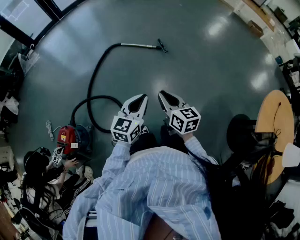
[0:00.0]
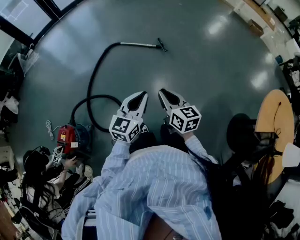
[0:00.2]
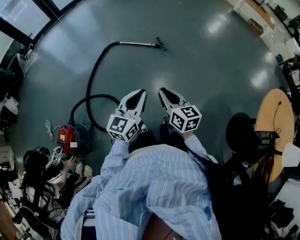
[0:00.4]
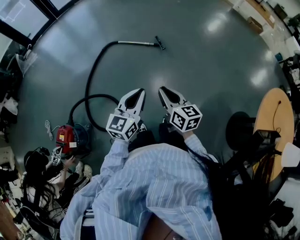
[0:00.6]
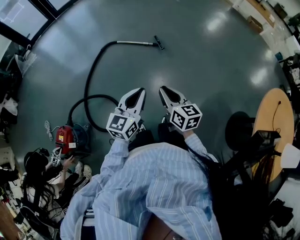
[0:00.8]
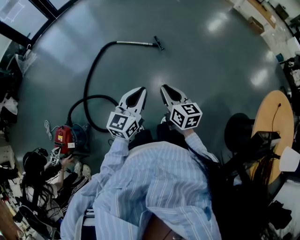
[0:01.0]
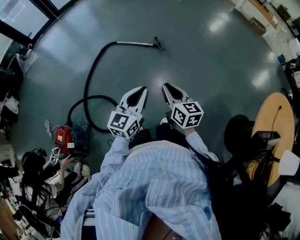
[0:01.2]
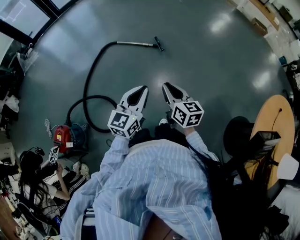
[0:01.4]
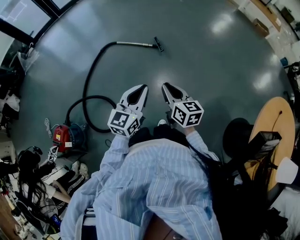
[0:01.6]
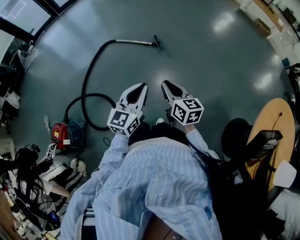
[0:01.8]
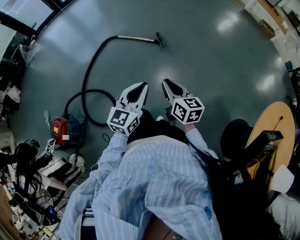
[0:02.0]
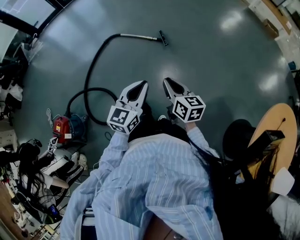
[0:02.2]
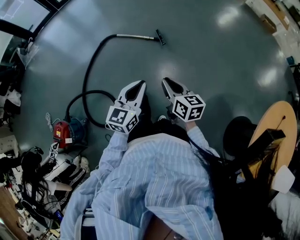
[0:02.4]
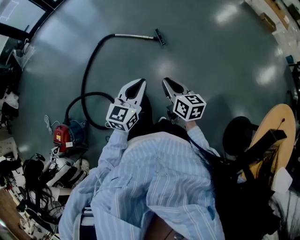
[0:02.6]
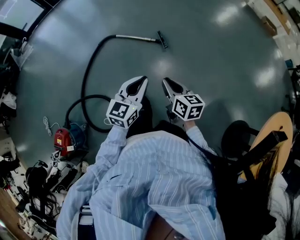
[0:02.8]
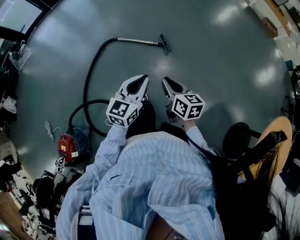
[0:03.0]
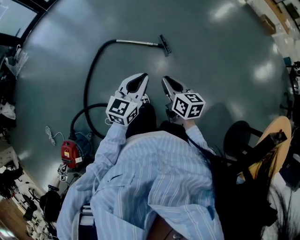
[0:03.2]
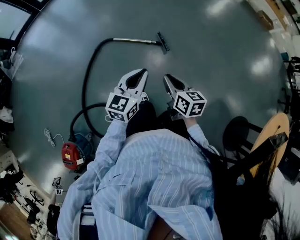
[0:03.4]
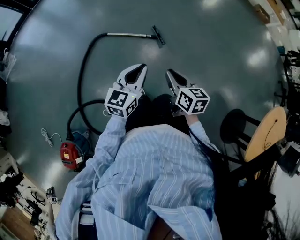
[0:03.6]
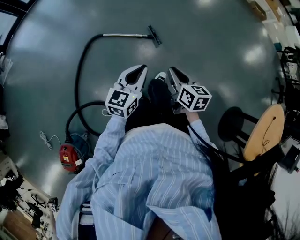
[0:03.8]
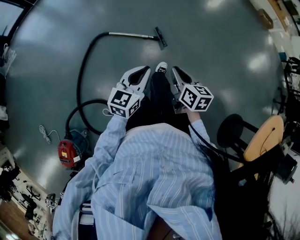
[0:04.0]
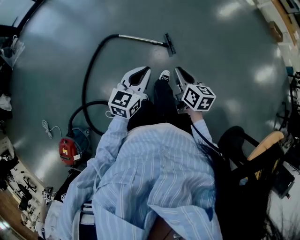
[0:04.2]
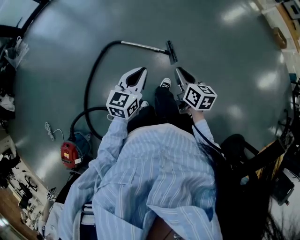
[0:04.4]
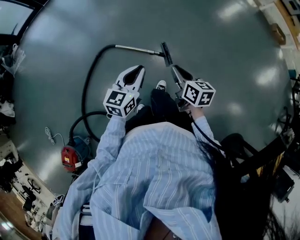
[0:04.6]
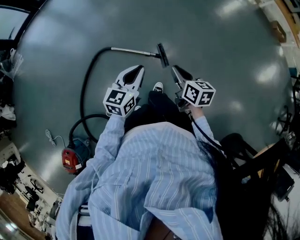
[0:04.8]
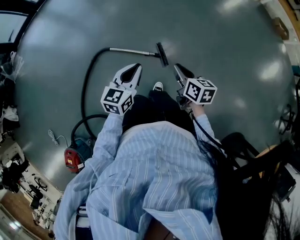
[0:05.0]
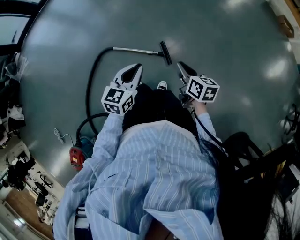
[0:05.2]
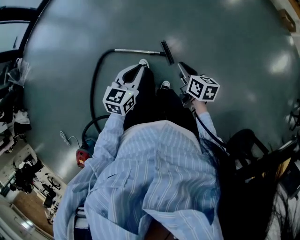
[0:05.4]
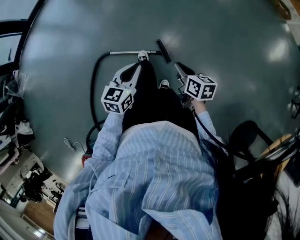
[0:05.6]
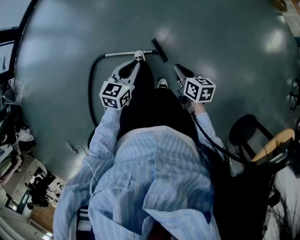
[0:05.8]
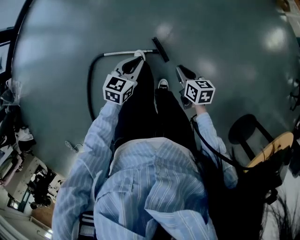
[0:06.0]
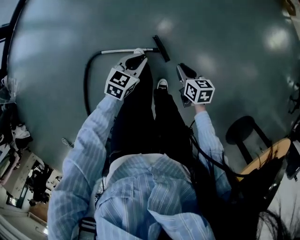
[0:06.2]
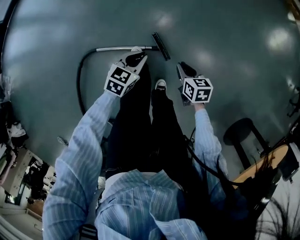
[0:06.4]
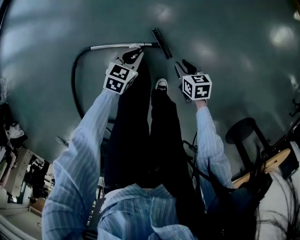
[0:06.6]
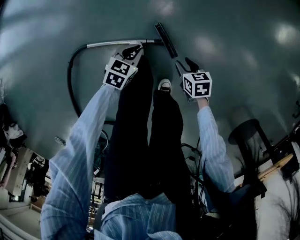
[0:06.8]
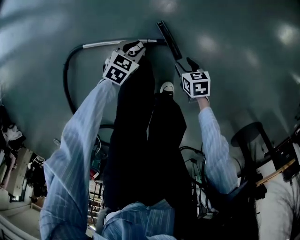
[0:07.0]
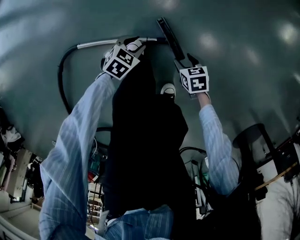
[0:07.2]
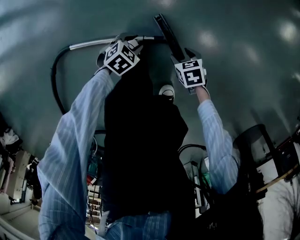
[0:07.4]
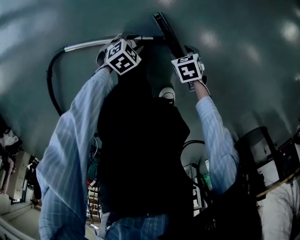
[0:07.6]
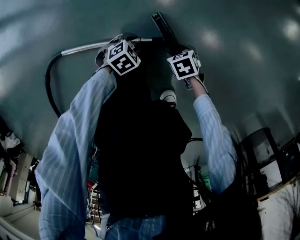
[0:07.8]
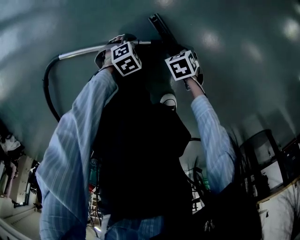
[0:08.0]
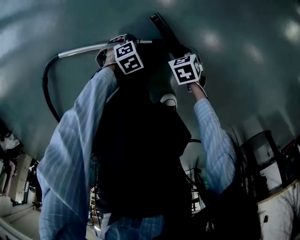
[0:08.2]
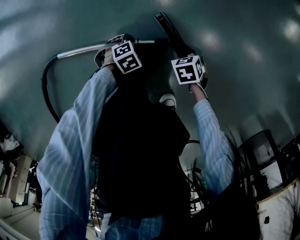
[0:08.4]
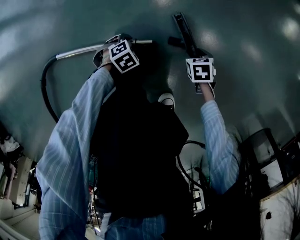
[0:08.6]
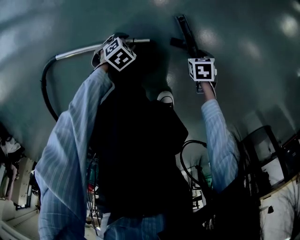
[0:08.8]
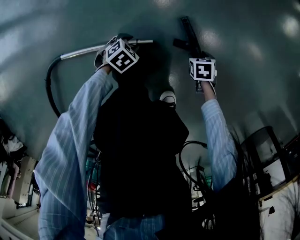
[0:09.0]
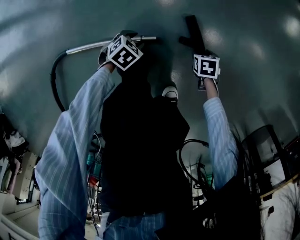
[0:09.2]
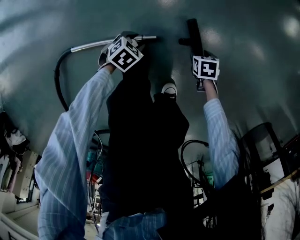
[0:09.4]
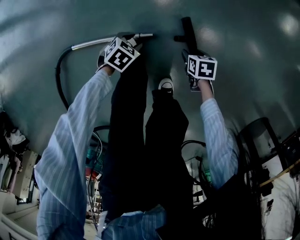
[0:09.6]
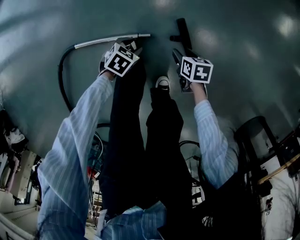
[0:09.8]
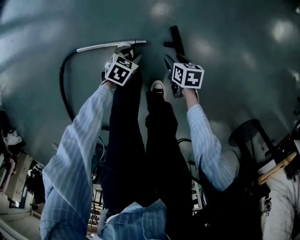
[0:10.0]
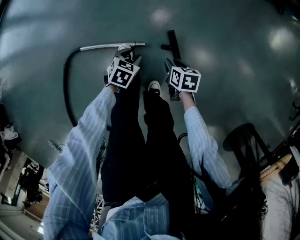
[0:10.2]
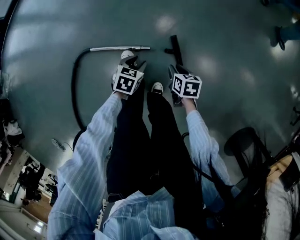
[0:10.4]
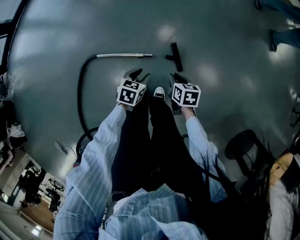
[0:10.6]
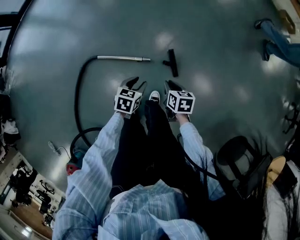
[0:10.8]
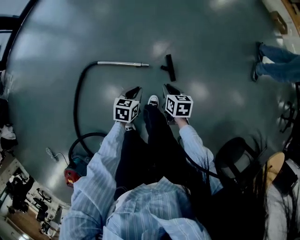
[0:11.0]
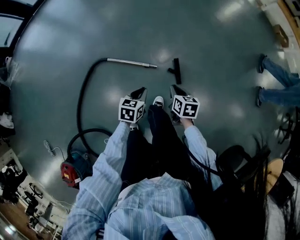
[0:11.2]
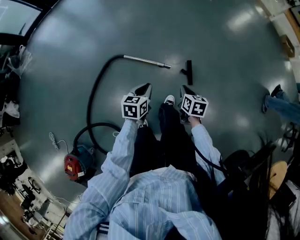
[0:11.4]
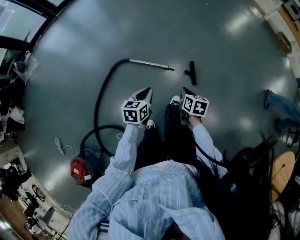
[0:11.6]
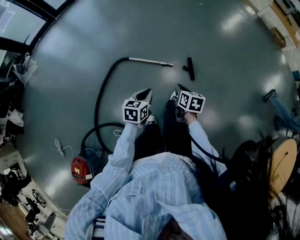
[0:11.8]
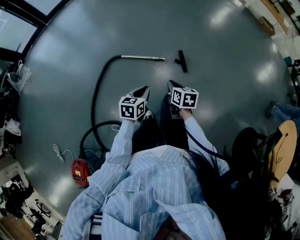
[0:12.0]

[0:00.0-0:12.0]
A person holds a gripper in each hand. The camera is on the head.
0:00.0 to 0:01.6: Both grippers move to the right and forward, roughly 15 cm.
0:01.6 to 0:03.0: Both grippers travel together forward, about 25 cm.
0:03.0 to 0:04.4: Both grippers travel together forward, some 25 cm.
0:04.4 to 0:06.0: Both grippers move forward, downward and to the right, some 35 cm. The left gripper turns by roughly 30 degrees.
0:06.0 to 0:07.6: Both grippers move downward, roughly 60 cm. The right gripper tips its fingers downward by about 30 degrees, and opens up; the left gripper rotates roughly 50 degrees, and opens up.
0:07.6 to 0:09.0: The left gripper moves downward, some 5 cm. The right gripper ends up roughly 10 cm from where it was, and rotates about 20 degrees.
0:09.0 to 0:10.4: Both grippers move upward, approximately 40 cm. The right gripper turns by roughly 30 degrees, and closes its fingers, while the left gripper turns by some 40 degrees.
0:10.4 to 0:12.0: The right gripper is displaced backward, upward and to the left by approximately 50 cm, and closes up; the left gripper goes approximately 50 cm backward and upward, rotates about 30 degrees, and closes up.

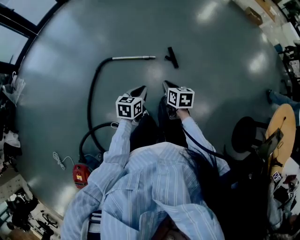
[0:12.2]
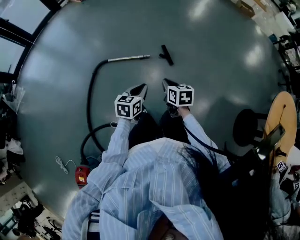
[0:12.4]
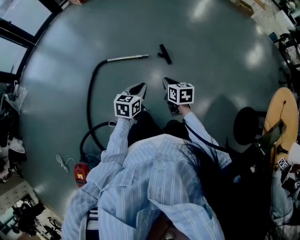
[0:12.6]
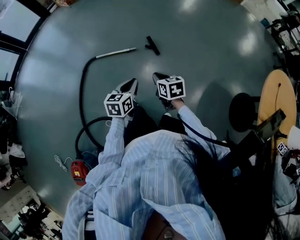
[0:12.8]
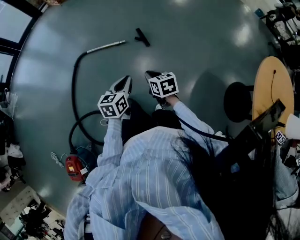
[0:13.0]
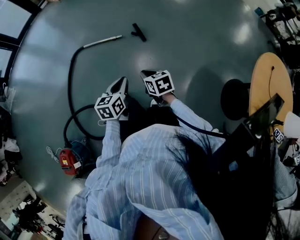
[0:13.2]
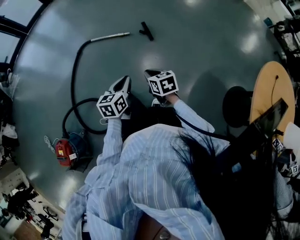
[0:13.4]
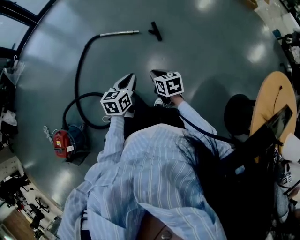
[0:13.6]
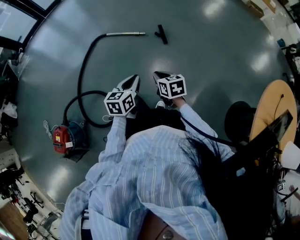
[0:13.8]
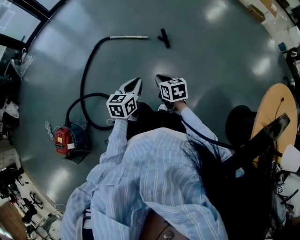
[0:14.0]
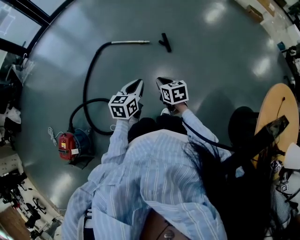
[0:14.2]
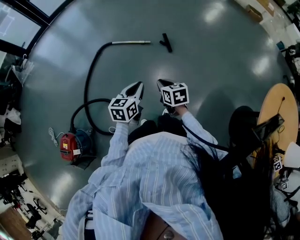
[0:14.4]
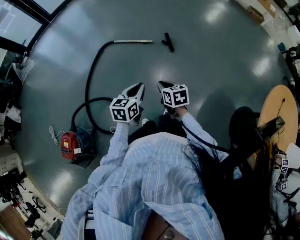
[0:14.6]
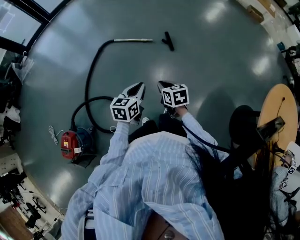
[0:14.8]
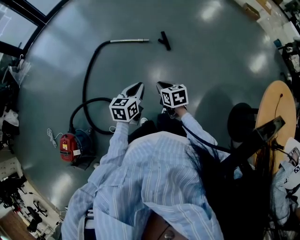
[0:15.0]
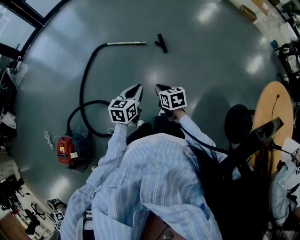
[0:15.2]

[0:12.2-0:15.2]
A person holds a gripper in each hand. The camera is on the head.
0:12.2 to 0:13.8: The grippers both shift backward and to the right by roughly 35 cm.
0:13.8 to 0:15.2: The grippers both shift to the left by approximately 5 cm.

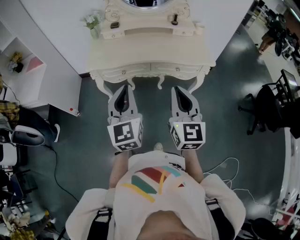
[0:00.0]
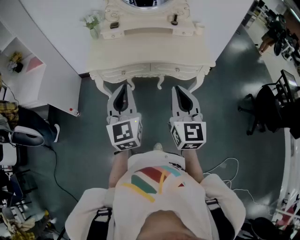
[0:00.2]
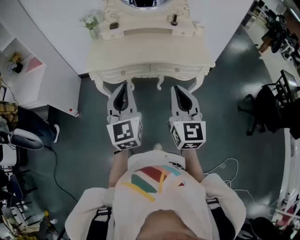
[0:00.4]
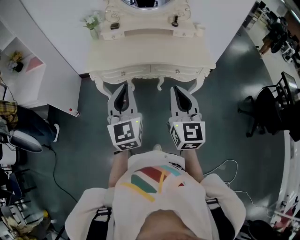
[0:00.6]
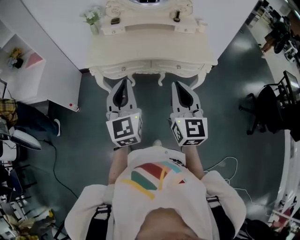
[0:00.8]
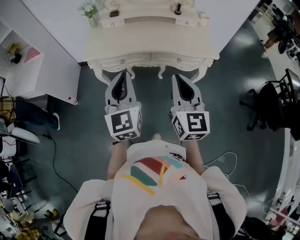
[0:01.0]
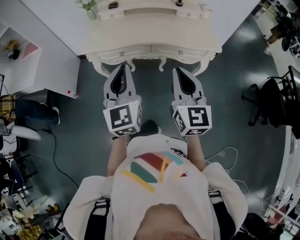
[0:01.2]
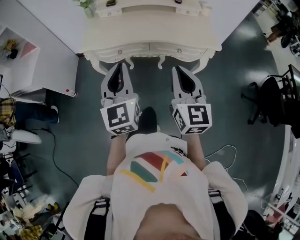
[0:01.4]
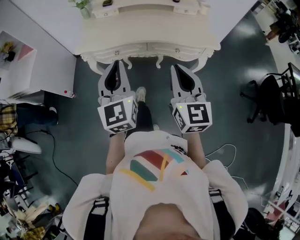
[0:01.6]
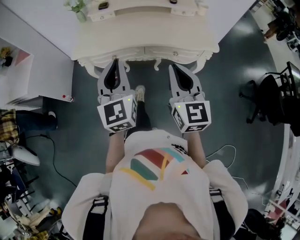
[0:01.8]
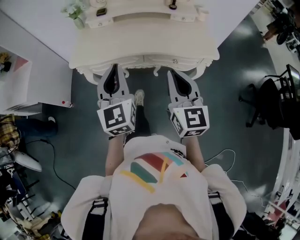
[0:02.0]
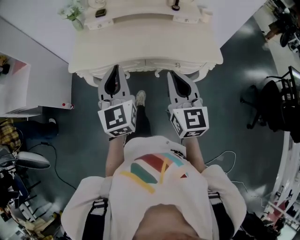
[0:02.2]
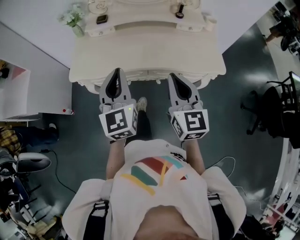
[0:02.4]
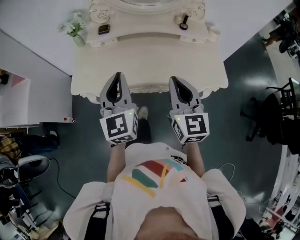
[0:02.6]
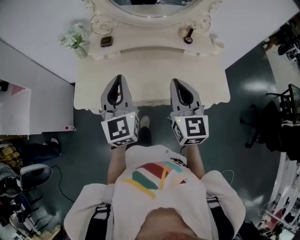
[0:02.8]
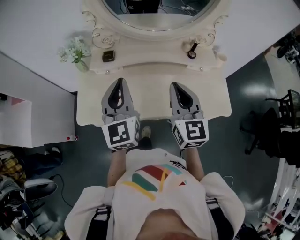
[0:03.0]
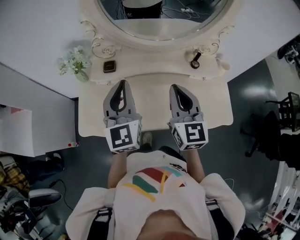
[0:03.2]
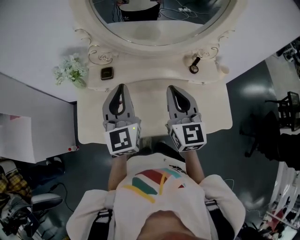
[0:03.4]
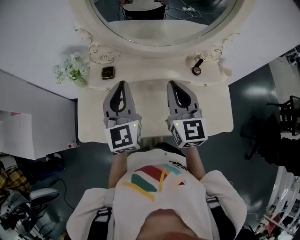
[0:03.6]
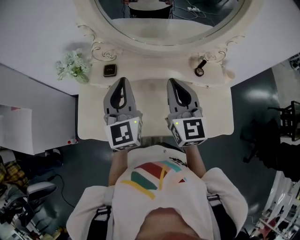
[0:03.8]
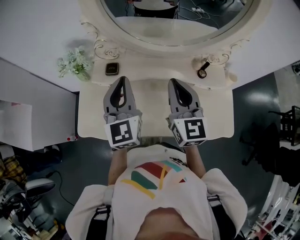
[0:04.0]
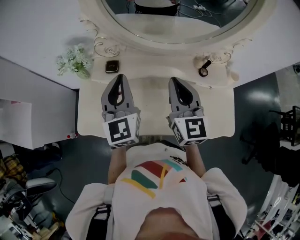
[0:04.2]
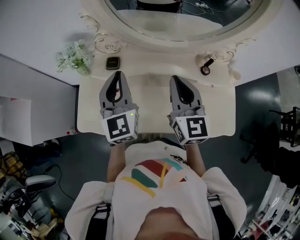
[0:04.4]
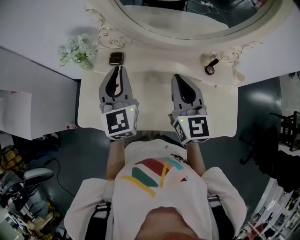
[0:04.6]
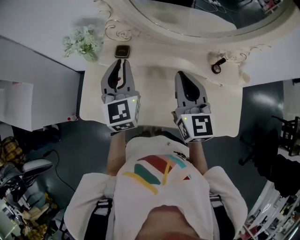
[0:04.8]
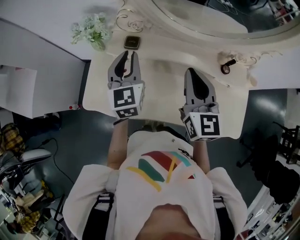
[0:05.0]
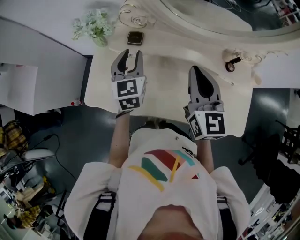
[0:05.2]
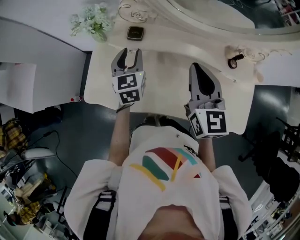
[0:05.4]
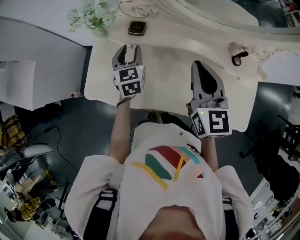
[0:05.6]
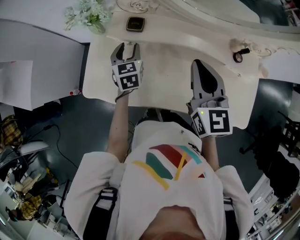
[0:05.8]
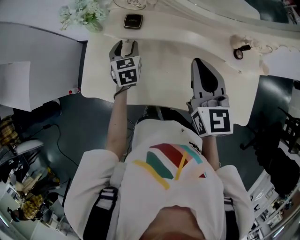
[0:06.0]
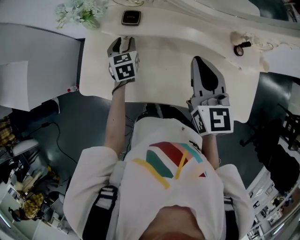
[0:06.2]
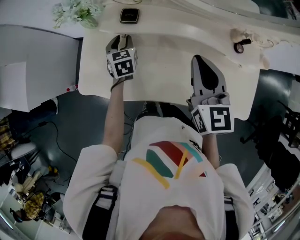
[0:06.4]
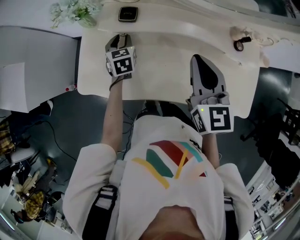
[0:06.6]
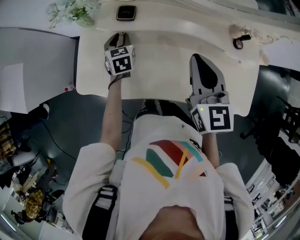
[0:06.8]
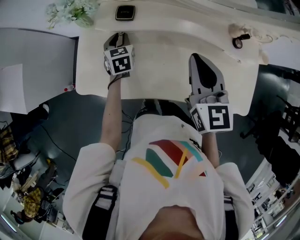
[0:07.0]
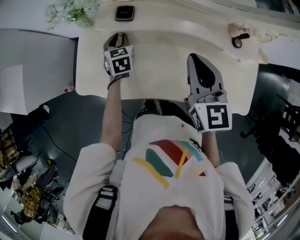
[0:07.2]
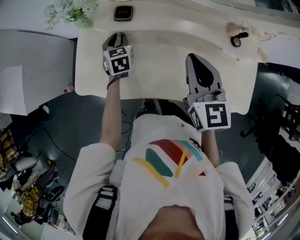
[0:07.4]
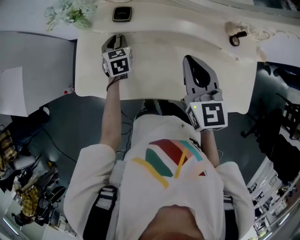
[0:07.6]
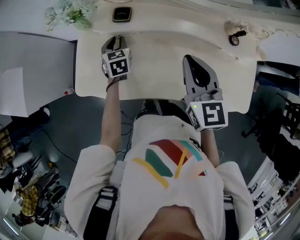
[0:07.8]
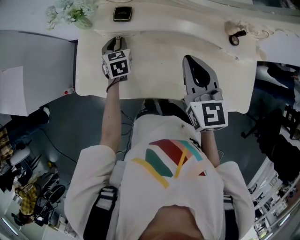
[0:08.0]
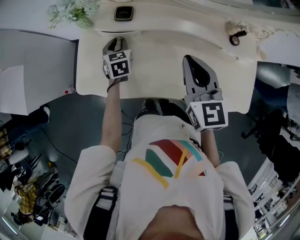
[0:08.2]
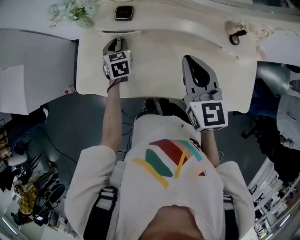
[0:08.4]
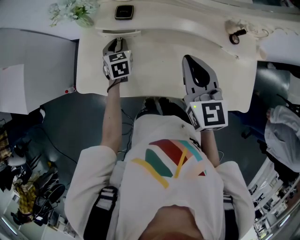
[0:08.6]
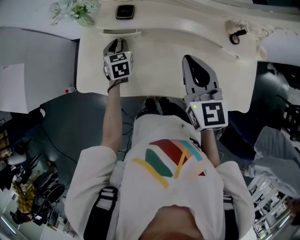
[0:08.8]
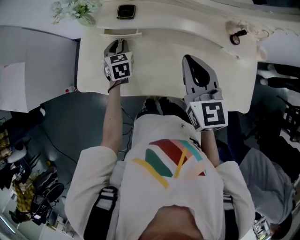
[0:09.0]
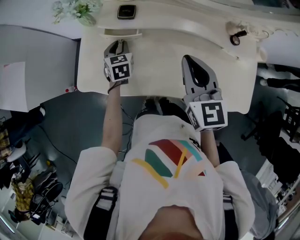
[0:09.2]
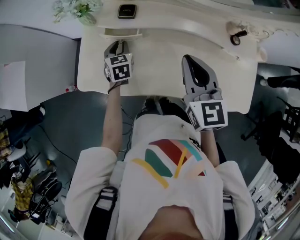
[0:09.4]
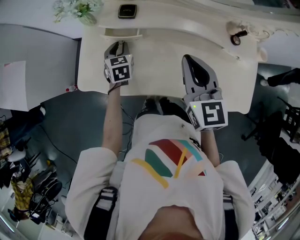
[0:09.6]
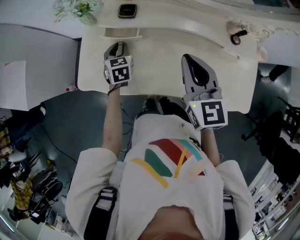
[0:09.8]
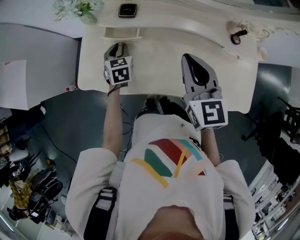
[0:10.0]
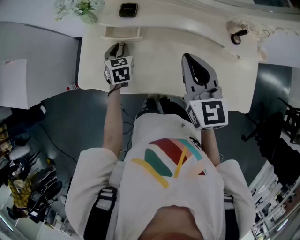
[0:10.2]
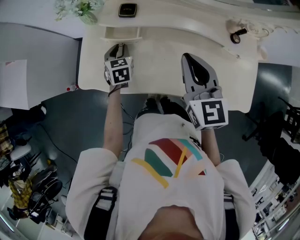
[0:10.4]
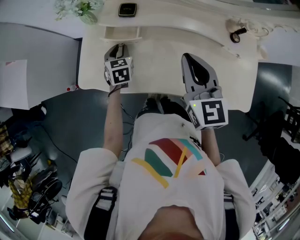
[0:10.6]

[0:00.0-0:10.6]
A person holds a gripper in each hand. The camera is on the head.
0:00.0 to 0:01.6: The two grippers go some 5 cm forward.
0:01.6 to 0:03.0: The two grippers go approximately 35 cm forward.
0:03.0 to 0:04.6: The two grippers go about 15 cm forward.
0:04.6 to 0:06.0: The right gripper changes place by approximately 5 cm; the left gripper travels downward by about 25 cm, points its fingers some 30 degrees further downward, and opens up.
0:06.0 to 0:09.0: The grippers stay close to where they were, moving slightly.
0:09.0 to 0:10.6: The grippers stay close to where they were, moving slightly.
